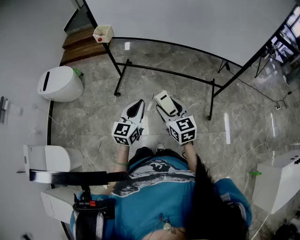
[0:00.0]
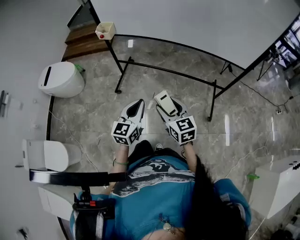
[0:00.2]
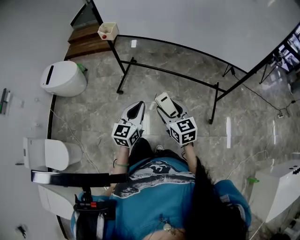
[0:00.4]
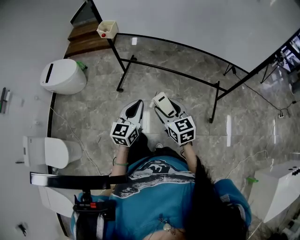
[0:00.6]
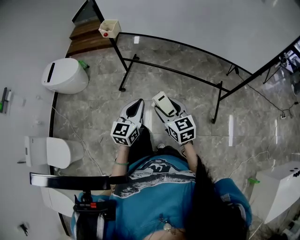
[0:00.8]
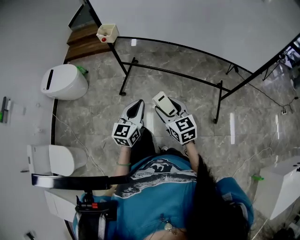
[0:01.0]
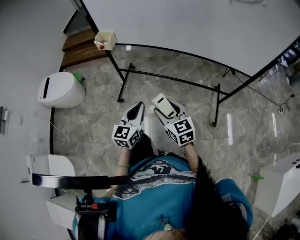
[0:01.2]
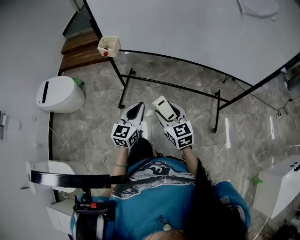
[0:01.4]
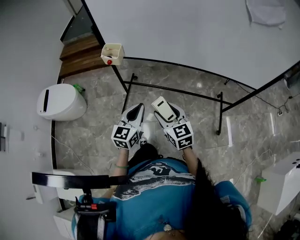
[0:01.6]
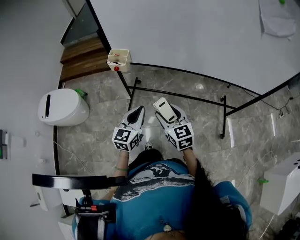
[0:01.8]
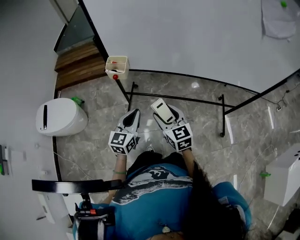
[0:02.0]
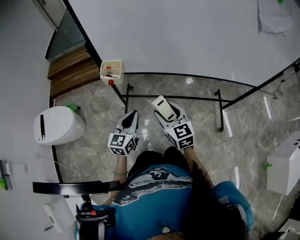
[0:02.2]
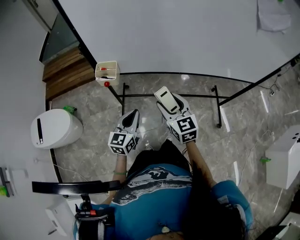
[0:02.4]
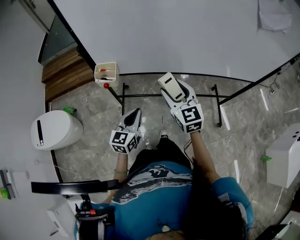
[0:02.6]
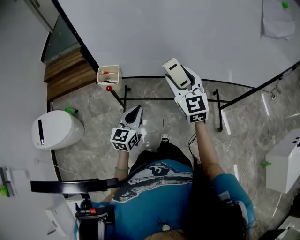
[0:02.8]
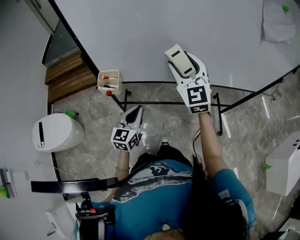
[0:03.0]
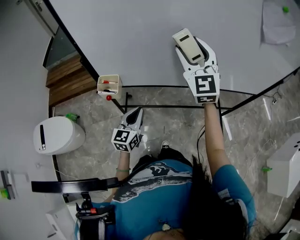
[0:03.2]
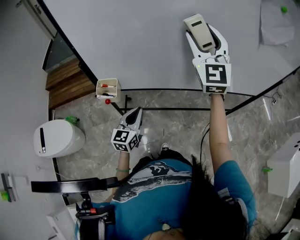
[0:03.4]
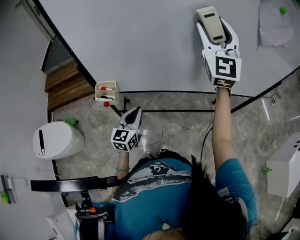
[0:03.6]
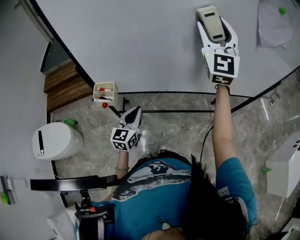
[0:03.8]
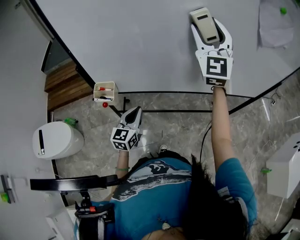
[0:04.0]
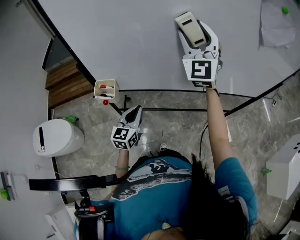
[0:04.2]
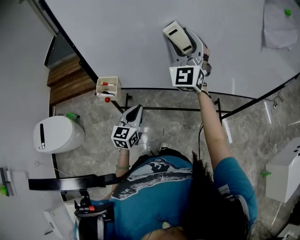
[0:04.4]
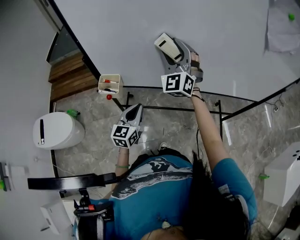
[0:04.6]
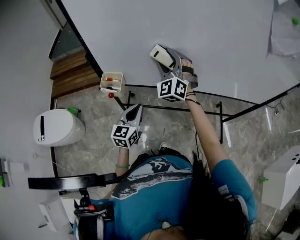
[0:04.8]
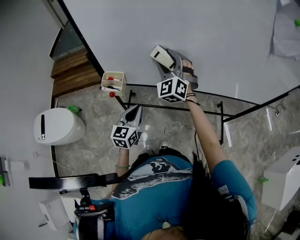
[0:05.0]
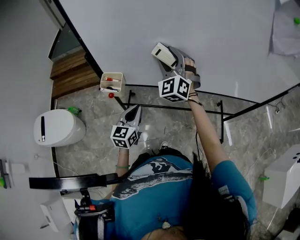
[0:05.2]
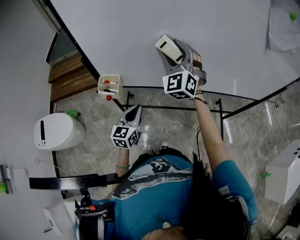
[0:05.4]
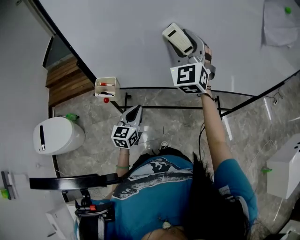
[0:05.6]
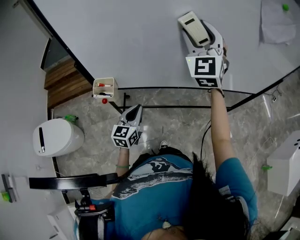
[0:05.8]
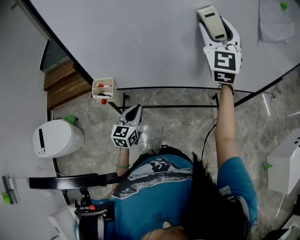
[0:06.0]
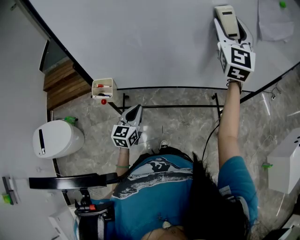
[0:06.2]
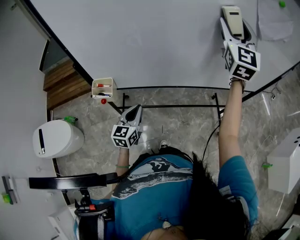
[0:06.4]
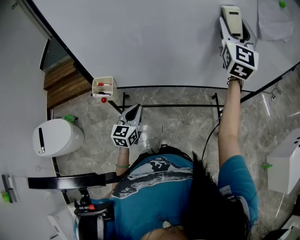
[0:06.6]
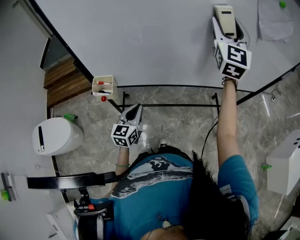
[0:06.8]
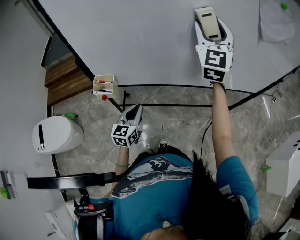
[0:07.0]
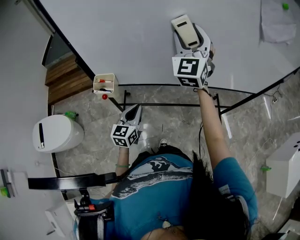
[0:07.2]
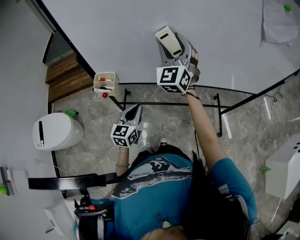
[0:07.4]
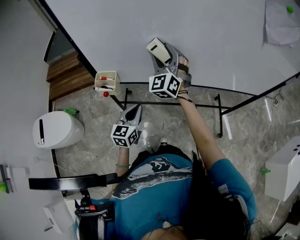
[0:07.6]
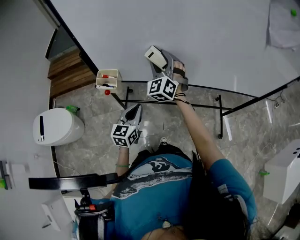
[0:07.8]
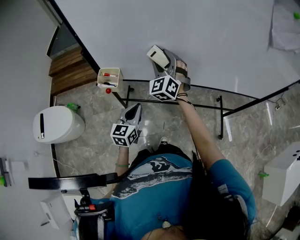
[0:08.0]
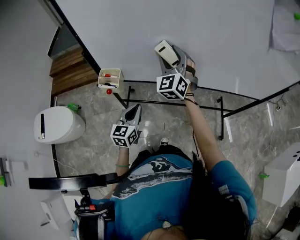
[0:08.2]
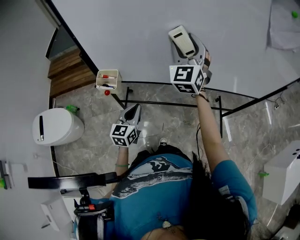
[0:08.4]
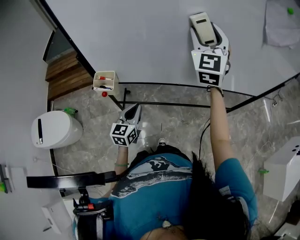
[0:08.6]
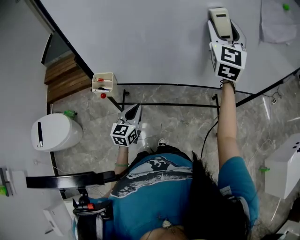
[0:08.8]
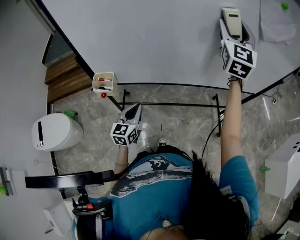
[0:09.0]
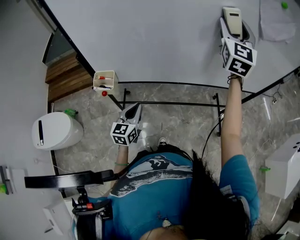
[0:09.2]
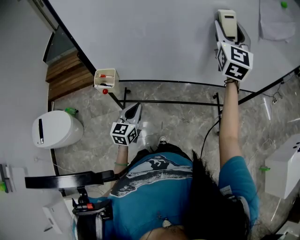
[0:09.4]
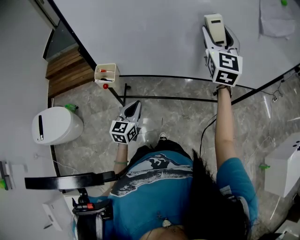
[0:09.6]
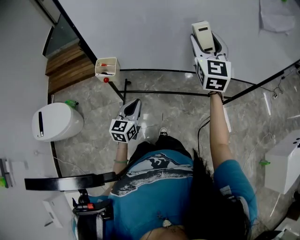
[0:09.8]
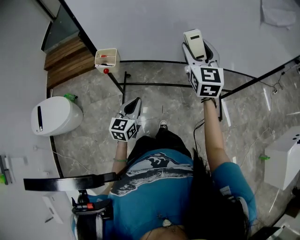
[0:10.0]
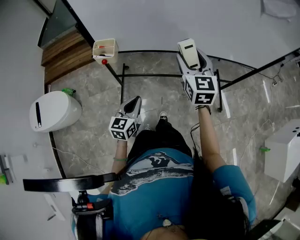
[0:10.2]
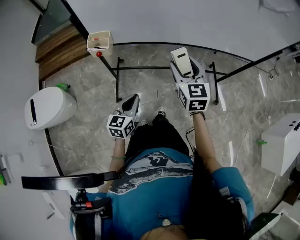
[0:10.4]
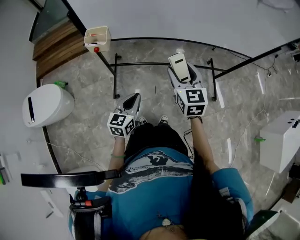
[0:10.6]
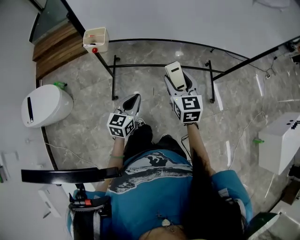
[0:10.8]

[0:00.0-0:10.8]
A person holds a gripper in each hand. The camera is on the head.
0:00.0 to 0:01.6: Both grippers travel together forward and to the left, about 25 cm.
0:01.6 to 0:03.0: The right gripper goes approximately 35 cm forward and upward, and rotates some 40 degrees. The left gripper shifts some 20 cm forward and to the left.
0:03.0 to 0:04.6: The right gripper is displaced forward by about 10 cm, goes upward and returns, roughly 20 cm each way, and changes its angle by about 30 degrees.
0:04.6 to 0:06.2: The right gripper moves to the right and upward, approximately 30 cm, and swivels roughly 30 degrees.
0:06.2 to 0:07.8: The right gripper moves downward and to the left, some 35 cm, and turns by roughly 30 degrees.
0:07.8 to 0:09.2: The right gripper moves to the right and upward, about 35 cm, and swivels about 40 degrees.
0:09.2 to 0:10.8: The right gripper shifts some 50 cm downward and backward, and angles its fingers downward, by some 30 degrees. Meanwhile the left gripper goes about 20 cm backward.

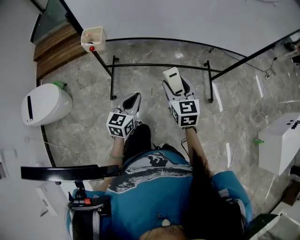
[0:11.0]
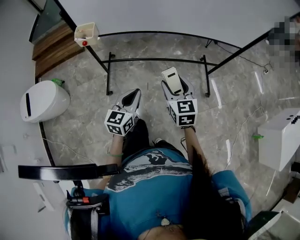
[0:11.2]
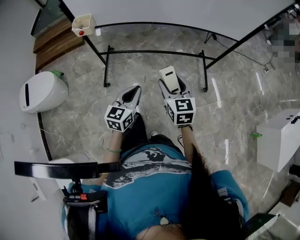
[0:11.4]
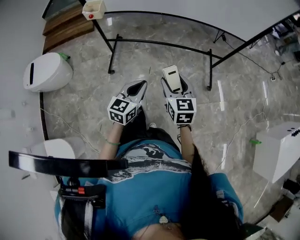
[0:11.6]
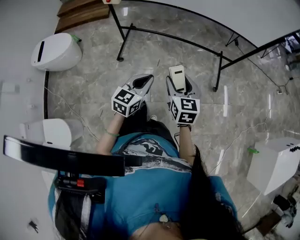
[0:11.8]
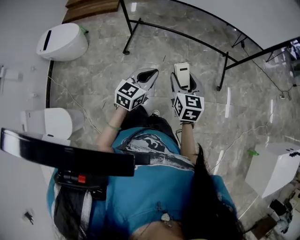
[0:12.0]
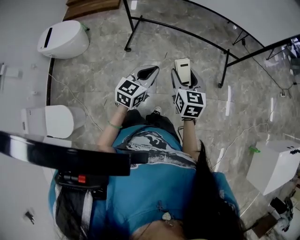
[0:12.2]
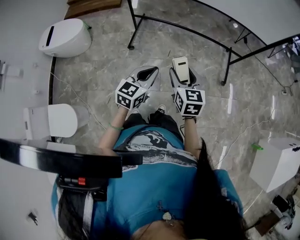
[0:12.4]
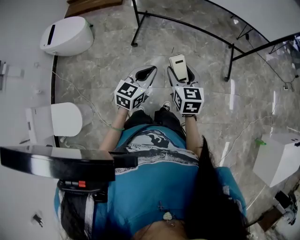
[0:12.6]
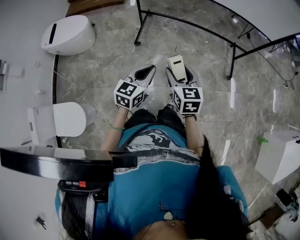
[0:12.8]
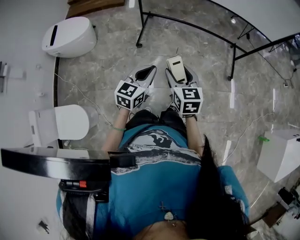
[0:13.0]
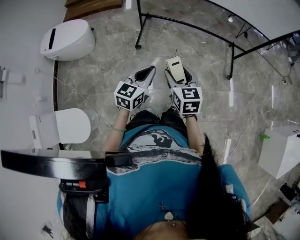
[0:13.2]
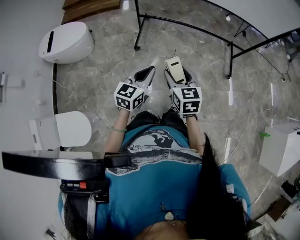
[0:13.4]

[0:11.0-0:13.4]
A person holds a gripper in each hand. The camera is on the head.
0:11.0 to 0:12.2: The right gripper shifts some 25 cm backward. The left gripper heads backward and to the right, covering roughly 30 cm.
0:12.2 to 0:13.4: Both grippers move to the left, approximately 20 cm.

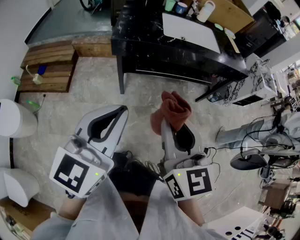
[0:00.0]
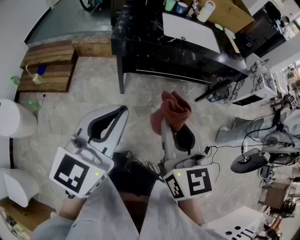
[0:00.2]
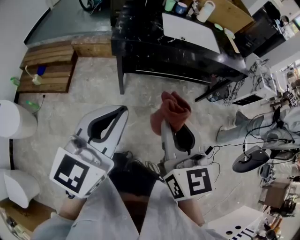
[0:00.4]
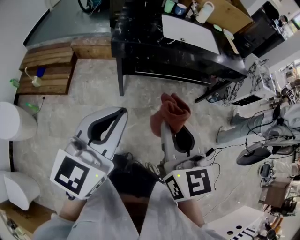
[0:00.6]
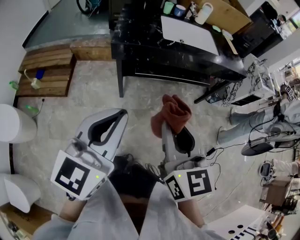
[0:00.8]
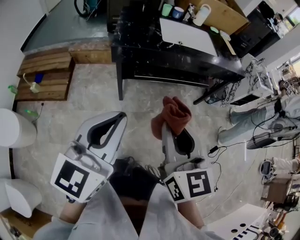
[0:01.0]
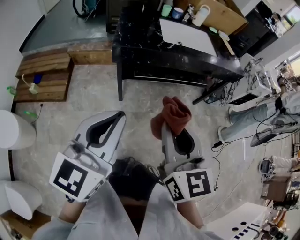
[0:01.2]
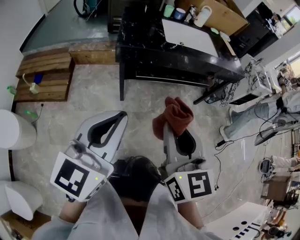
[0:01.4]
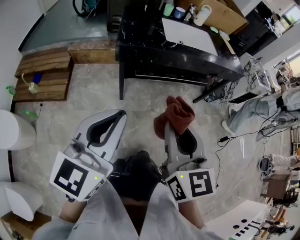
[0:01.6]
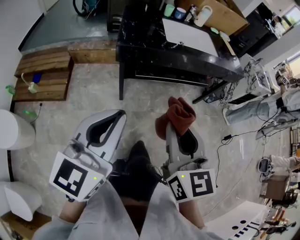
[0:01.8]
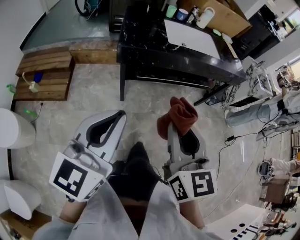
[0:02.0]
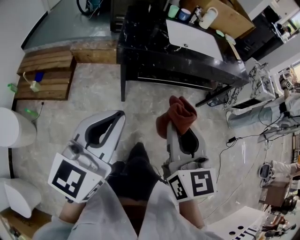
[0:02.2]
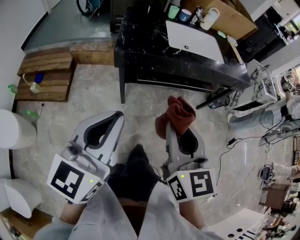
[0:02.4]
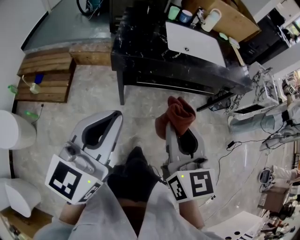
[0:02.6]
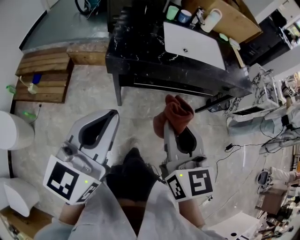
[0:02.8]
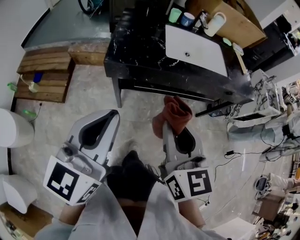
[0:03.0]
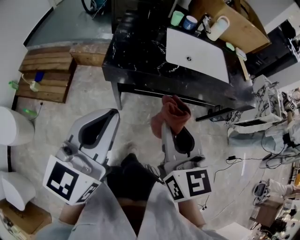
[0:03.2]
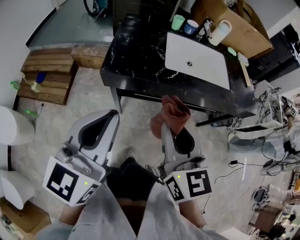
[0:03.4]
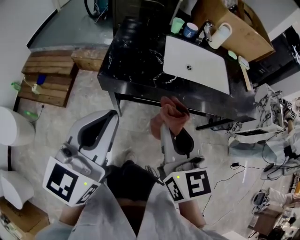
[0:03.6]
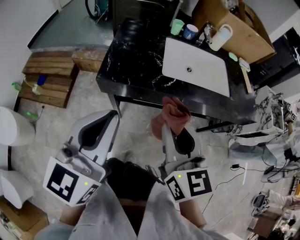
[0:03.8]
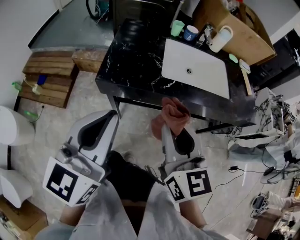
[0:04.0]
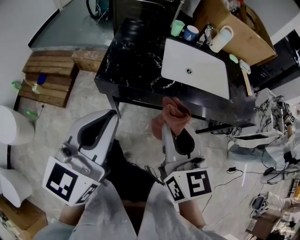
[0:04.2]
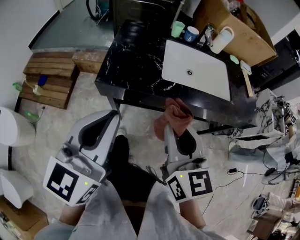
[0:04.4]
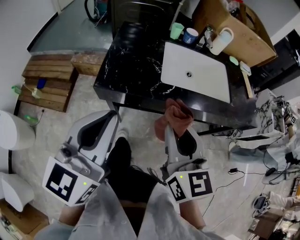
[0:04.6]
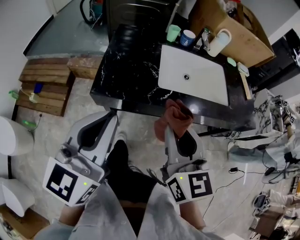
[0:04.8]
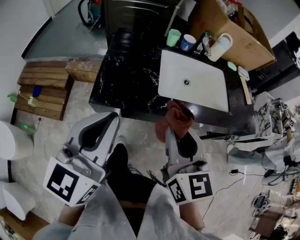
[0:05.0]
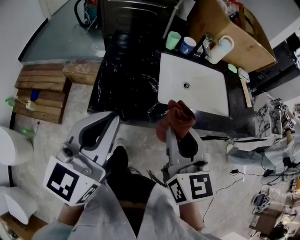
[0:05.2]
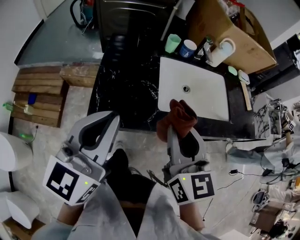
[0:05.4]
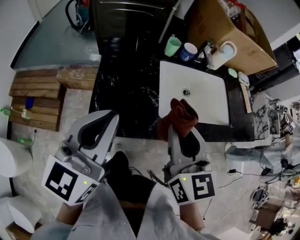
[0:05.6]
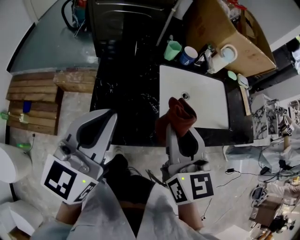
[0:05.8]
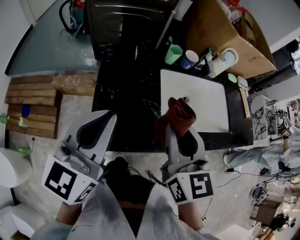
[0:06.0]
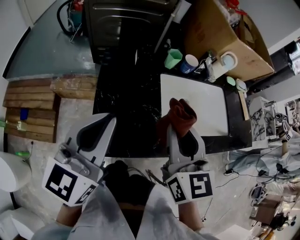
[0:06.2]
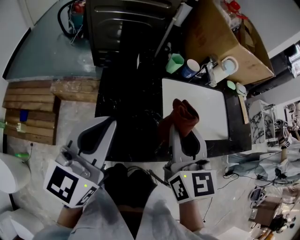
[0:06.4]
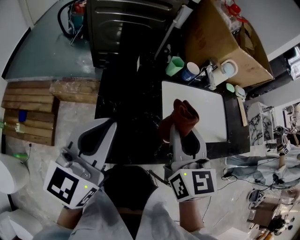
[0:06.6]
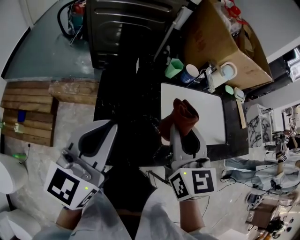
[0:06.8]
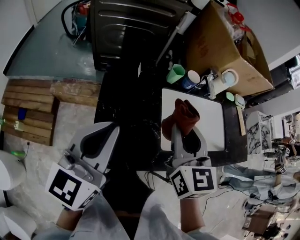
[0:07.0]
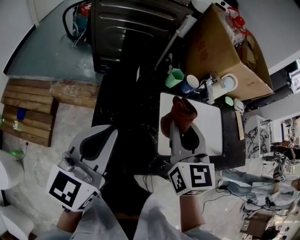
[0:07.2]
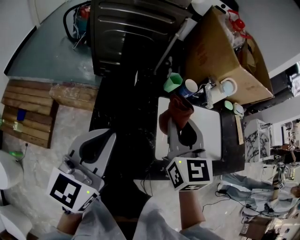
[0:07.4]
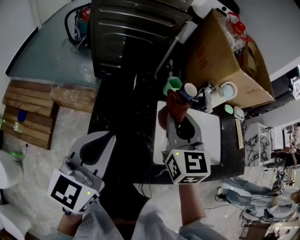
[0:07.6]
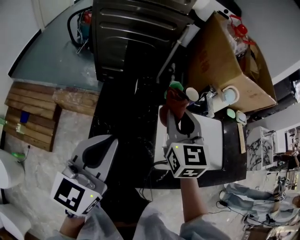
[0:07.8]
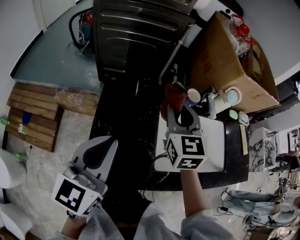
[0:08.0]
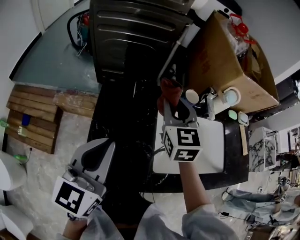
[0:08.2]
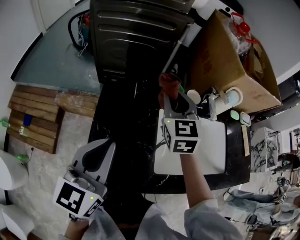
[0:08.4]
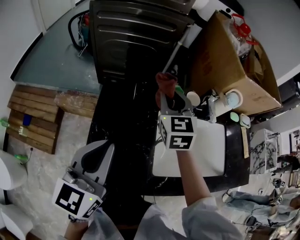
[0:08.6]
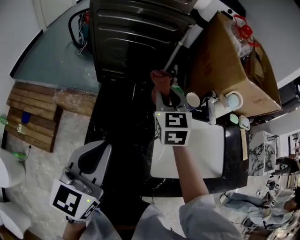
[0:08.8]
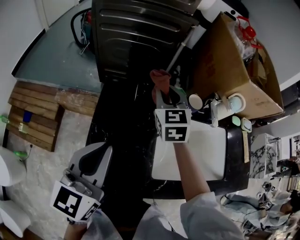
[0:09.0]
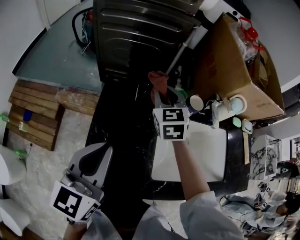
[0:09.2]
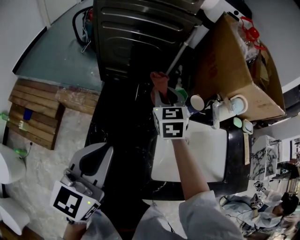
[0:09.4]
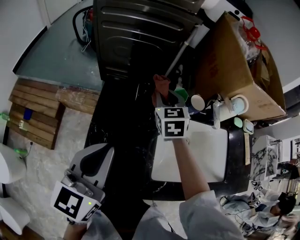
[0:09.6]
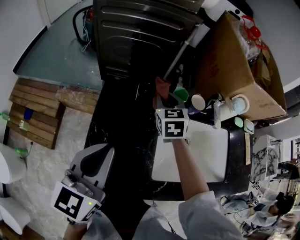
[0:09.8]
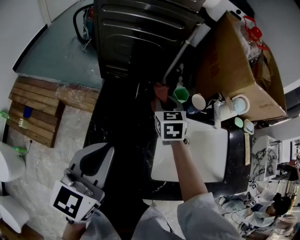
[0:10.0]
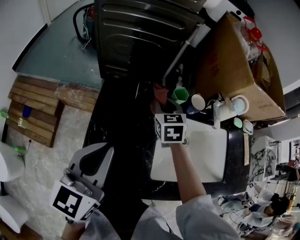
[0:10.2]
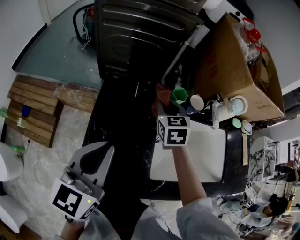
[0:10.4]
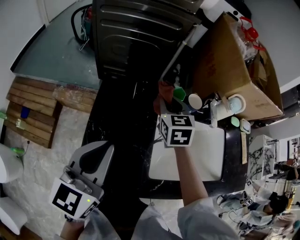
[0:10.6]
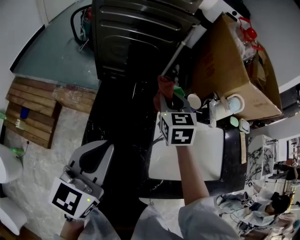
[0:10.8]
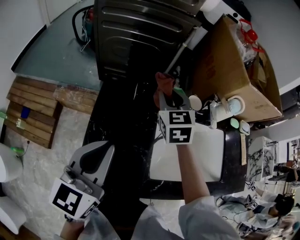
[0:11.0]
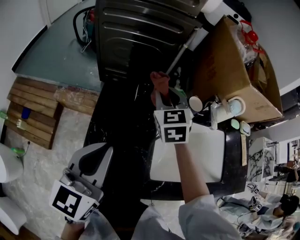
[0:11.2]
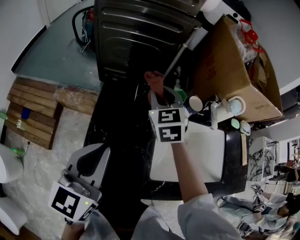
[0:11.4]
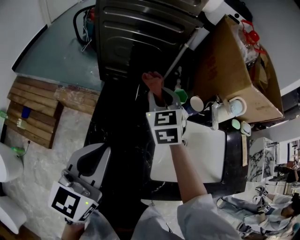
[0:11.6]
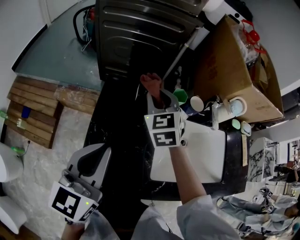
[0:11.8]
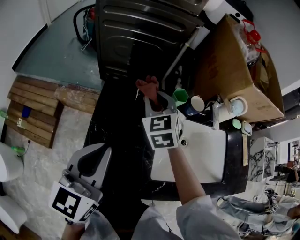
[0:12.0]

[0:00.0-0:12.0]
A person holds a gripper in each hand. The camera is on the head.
0:00.0 to 0:01.6: The grippers both shift to the left by roughly 5 cm.
0:01.6 to 0:03.0: The two grippers go about 20 cm forward.
0:03.0 to 0:04.4: The two grippers go some 15 cm forward and to the right.
0:04.4 to 0:06.0: The two grippers go roughly 25 cm forward.
0:06.0 to 0:07.6: The right gripper shifts about 15 cm forward. Meanwhile the left gripper heads forward, covering about 5 cm.
0:07.6 to 0:09.0: The right gripper heads forward, covering roughly 15 cm.
0:09.0 to 0:10.4: The right gripper moves downward, about 10 cm.
0:10.4 to 0:12.0: The right gripper goes about 5 cm to the left.
